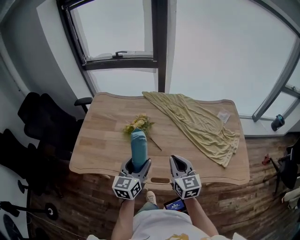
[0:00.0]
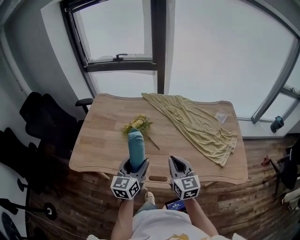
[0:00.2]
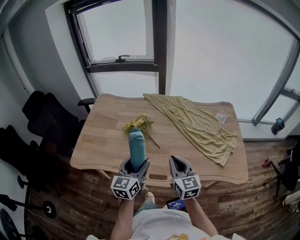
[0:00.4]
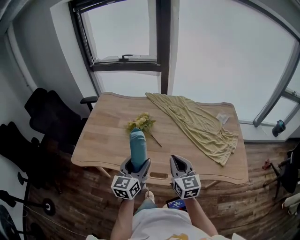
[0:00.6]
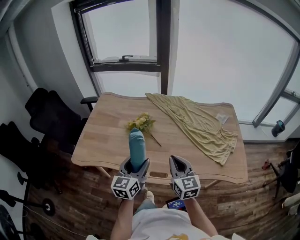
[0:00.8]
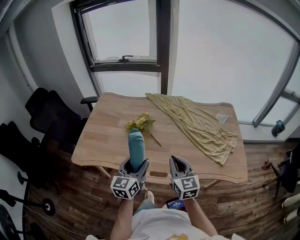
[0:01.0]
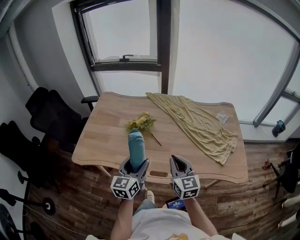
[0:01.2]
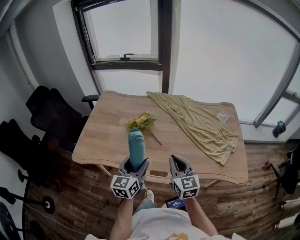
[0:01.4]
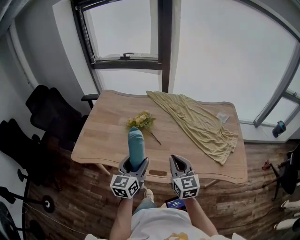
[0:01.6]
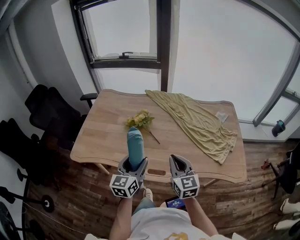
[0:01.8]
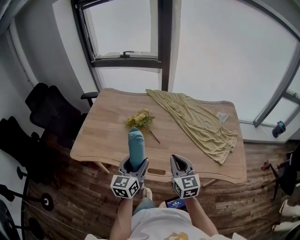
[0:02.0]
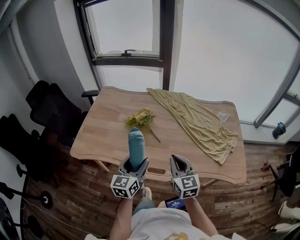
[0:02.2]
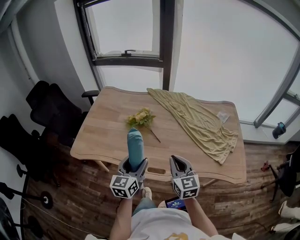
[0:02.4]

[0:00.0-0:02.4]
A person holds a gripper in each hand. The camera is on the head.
0:00.0 to 0:01.2: Both grippers move backward, approximately 5 cm.
0:01.2 to 0:02.4: The grippers move only a little.

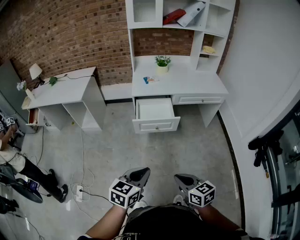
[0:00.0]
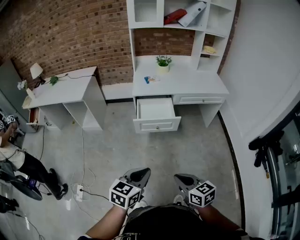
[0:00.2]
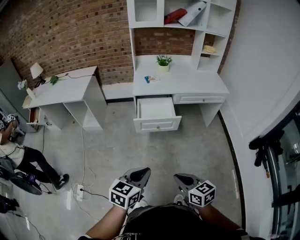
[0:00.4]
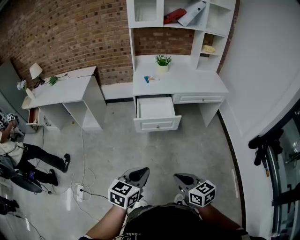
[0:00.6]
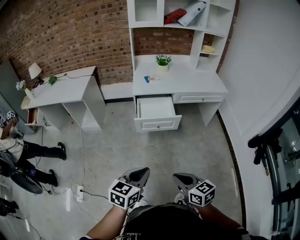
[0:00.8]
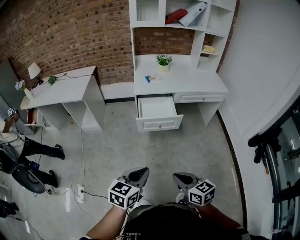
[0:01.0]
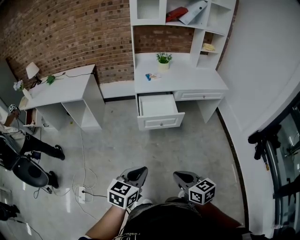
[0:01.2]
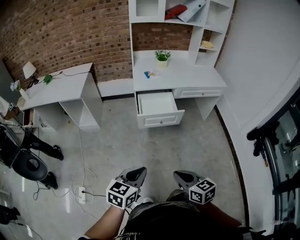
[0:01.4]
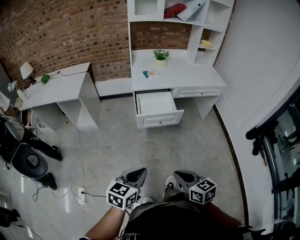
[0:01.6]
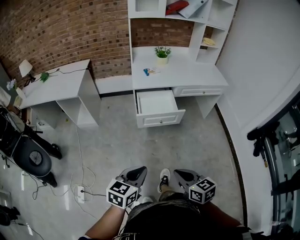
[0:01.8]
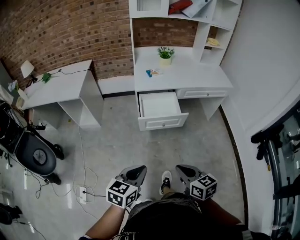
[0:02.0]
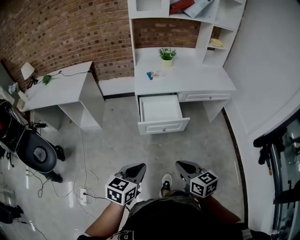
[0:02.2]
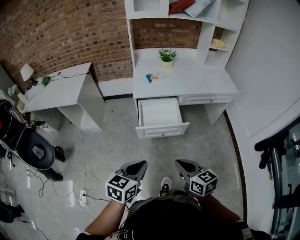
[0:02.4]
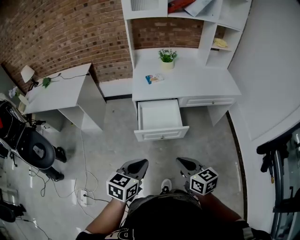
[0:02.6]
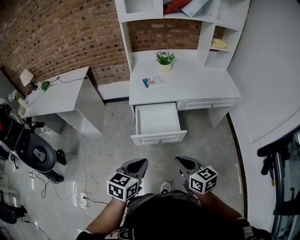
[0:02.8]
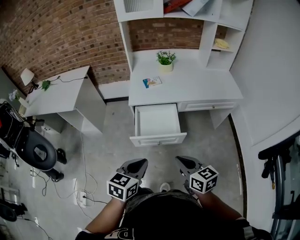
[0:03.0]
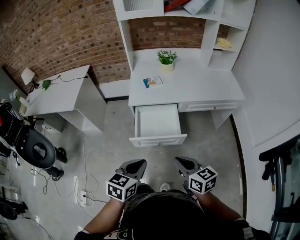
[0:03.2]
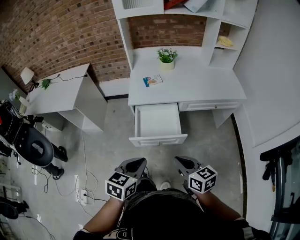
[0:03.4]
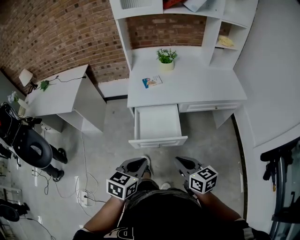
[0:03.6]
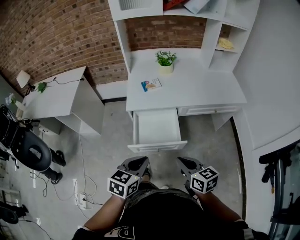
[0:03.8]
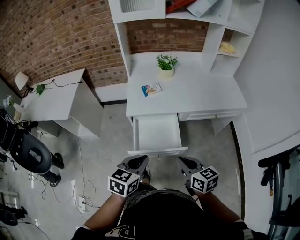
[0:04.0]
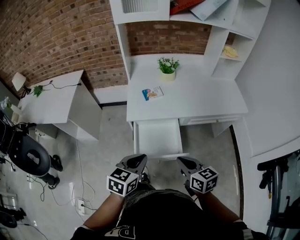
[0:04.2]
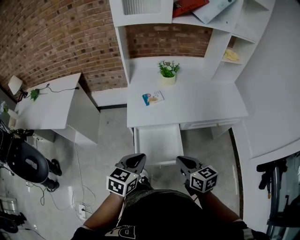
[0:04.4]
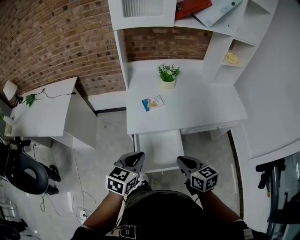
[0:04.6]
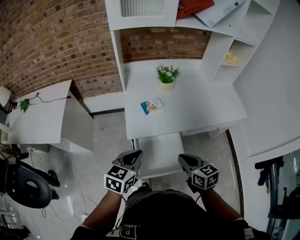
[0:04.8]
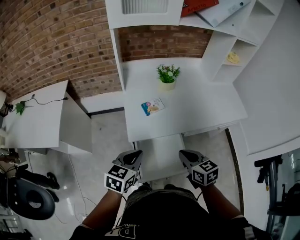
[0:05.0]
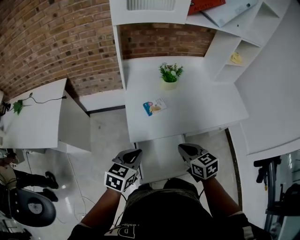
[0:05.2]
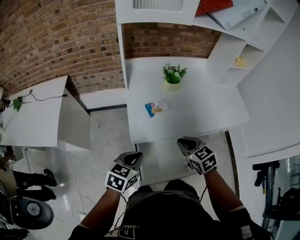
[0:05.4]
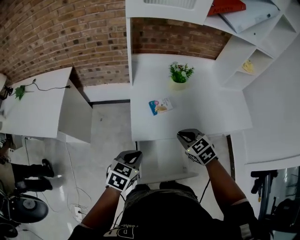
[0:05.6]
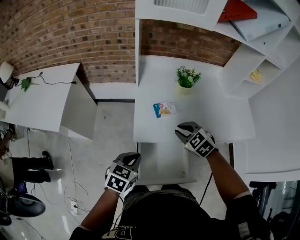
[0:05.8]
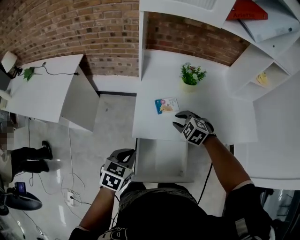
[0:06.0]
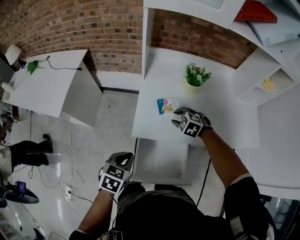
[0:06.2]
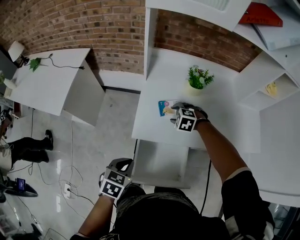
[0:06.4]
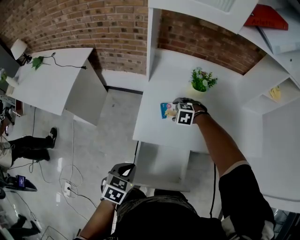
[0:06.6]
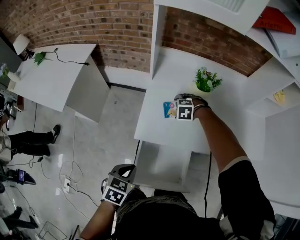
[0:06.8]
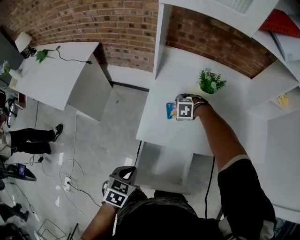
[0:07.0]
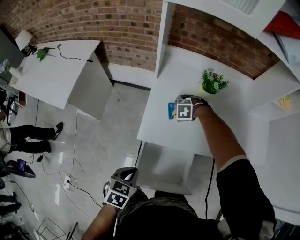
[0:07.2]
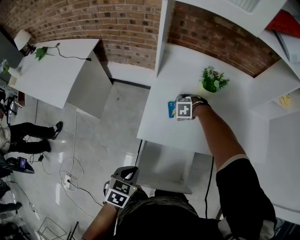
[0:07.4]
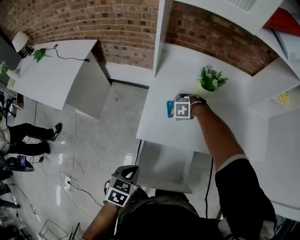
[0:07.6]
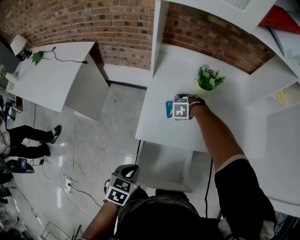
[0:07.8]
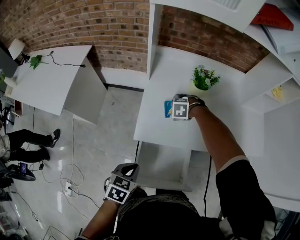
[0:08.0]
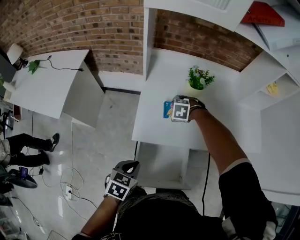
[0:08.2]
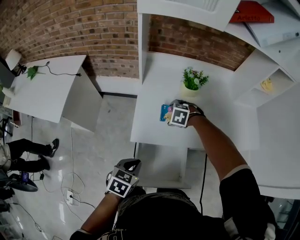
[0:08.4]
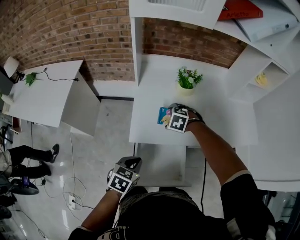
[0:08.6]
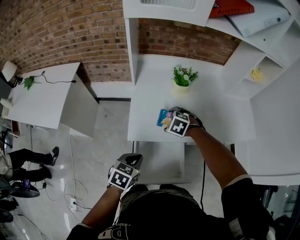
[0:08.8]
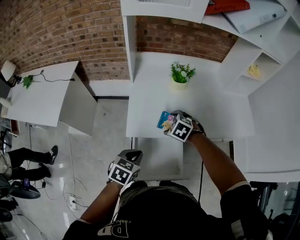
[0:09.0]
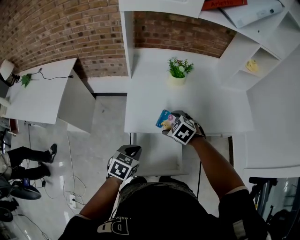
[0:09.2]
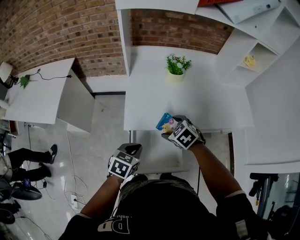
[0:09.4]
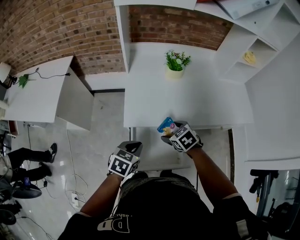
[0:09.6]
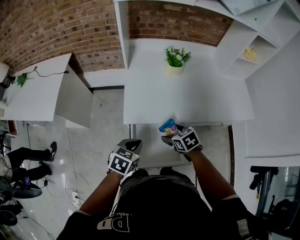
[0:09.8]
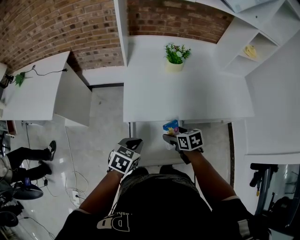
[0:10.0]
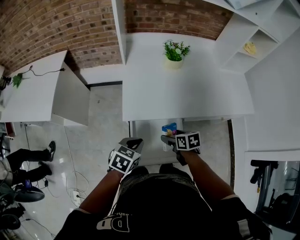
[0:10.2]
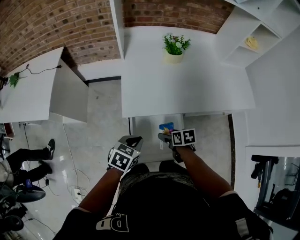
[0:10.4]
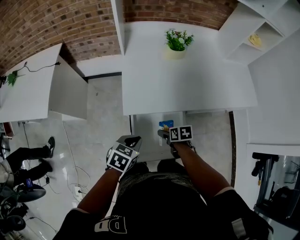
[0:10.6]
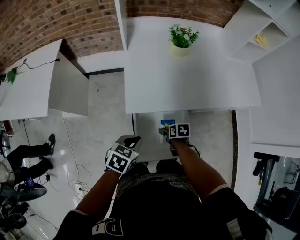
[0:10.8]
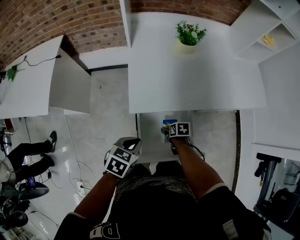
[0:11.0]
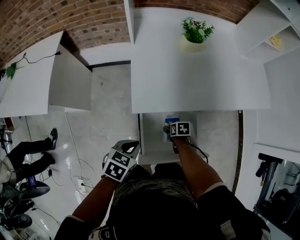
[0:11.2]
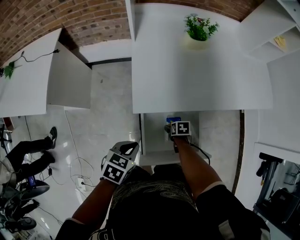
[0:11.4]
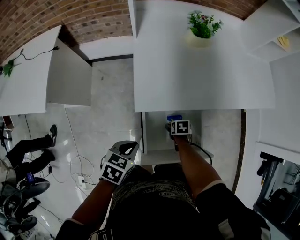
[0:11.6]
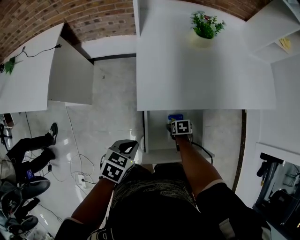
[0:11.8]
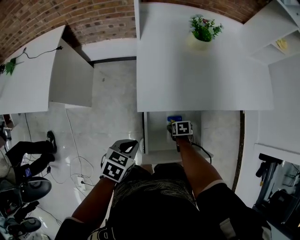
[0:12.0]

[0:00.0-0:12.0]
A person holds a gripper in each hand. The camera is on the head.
0:00.0 to 0:01.6: The two grippers go roughly 10 cm to the left.
0:01.6 to 0:03.0: The left gripper shifts approximately 30 cm forward and to the right, while the right gripper goes about 30 cm forward.
0:03.0 to 0:04.4: The grippers both shift forward by approximately 20 cm.
0:04.4 to 0:06.0: The right gripper travels forward by approximately 30 cm, and rolls counterclockwise, seen from behind, by some 60 degrees; the left gripper heads forward, to the left and downward, covering roughly 20 cm.
0:06.0 to 0:07.6: The right gripper shifts roughly 15 cm downward, rotates some 40 degrees, and opens; the left gripper travels downward by roughly 5 cm.
0:07.6 to 0:09.0: The left gripper ends up about 5 cm from where it was. The right gripper moves some 20 cm, and rotates approximately 40 degrees.
0:09.0 to 0:10.4: The right gripper travels backward and downward by roughly 20 cm, and rolls clockwise, seen from behind, by roughly 70 degrees, while the left gripper changes place by some 5 cm.
0:10.4 to 0:12.0: The right gripper travels downward by about 20 cm, and rotates about 20 degrees; the left gripper moves roughly 10 cm.

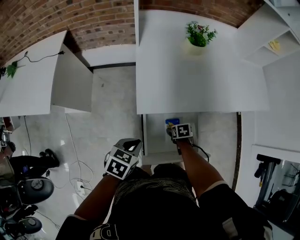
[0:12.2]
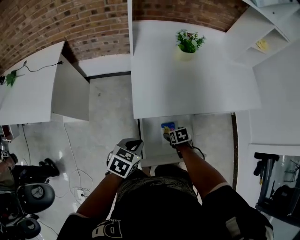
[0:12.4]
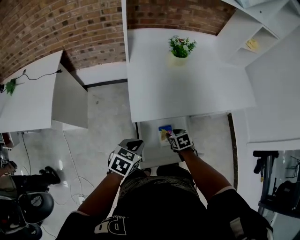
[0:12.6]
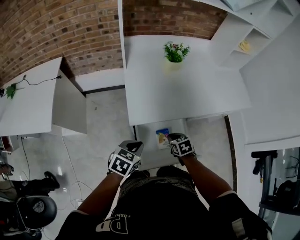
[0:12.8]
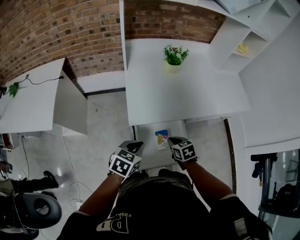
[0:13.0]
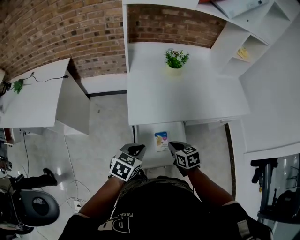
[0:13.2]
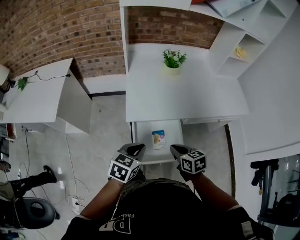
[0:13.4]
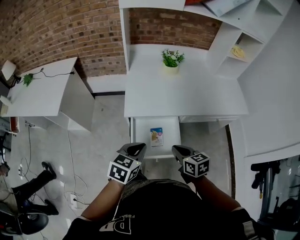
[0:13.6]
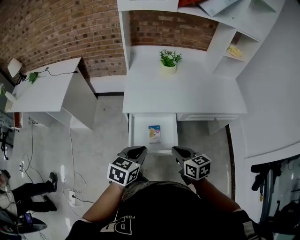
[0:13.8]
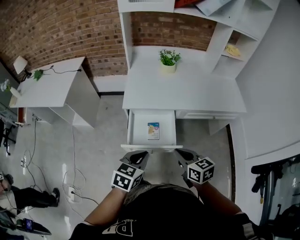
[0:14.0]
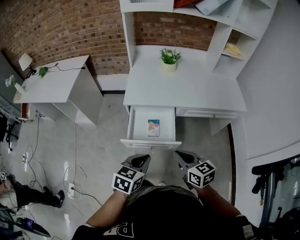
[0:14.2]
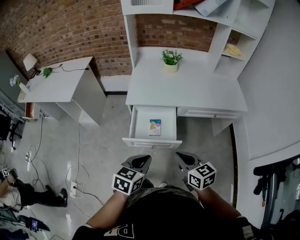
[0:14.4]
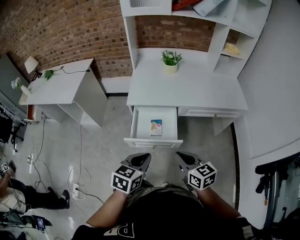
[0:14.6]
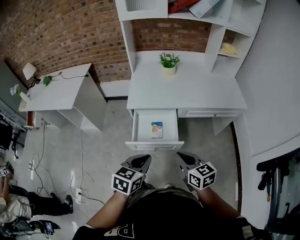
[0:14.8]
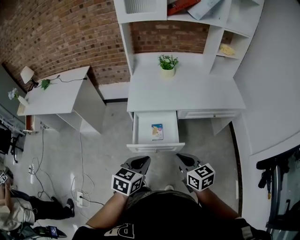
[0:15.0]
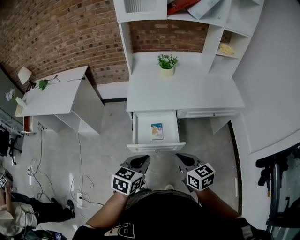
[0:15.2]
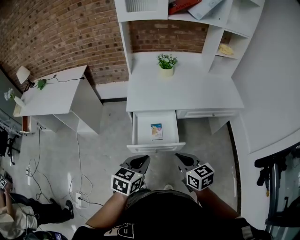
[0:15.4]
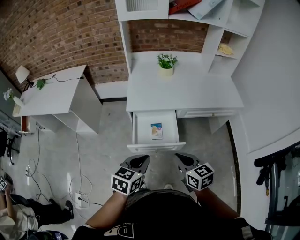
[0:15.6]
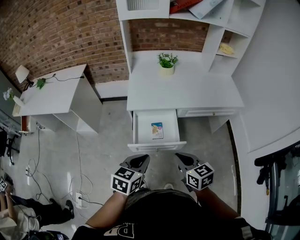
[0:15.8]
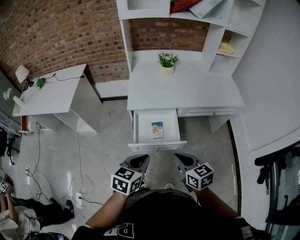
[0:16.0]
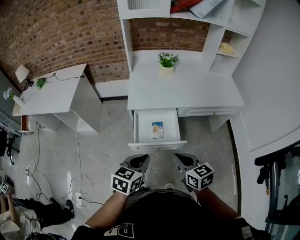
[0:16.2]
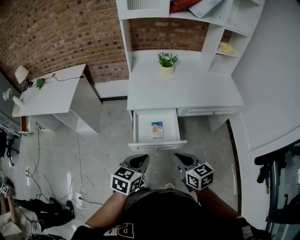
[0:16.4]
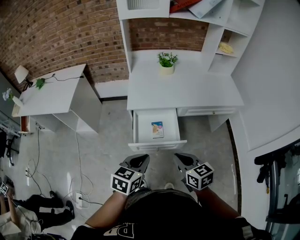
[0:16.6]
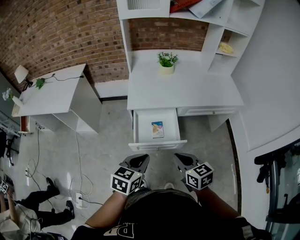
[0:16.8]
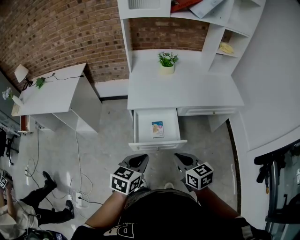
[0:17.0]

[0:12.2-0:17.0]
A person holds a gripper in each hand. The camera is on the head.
0:12.2 to 0:13.8: The right gripper heads upward, covering some 35 cm, points its fingers approximately 50 degrees further upward, and closes up. Meanwhile the left gripper shifts by roughly 25 cm, and changes its angle by roughly 20 degrees.
0:13.8 to 0:15.4: The right gripper goes about 10 cm backward and upward, while the left gripper heads backward, covering approximately 10 cm.
0:15.4 to 0:17.0: The grippers stay close to where they were, moving slightly.

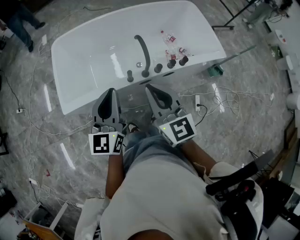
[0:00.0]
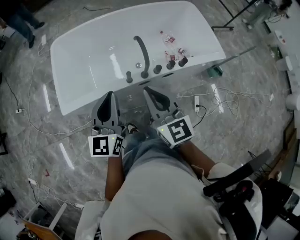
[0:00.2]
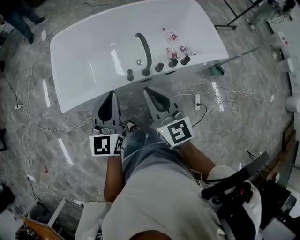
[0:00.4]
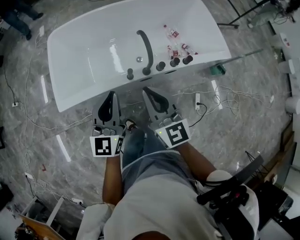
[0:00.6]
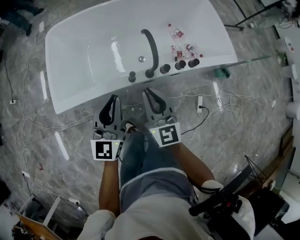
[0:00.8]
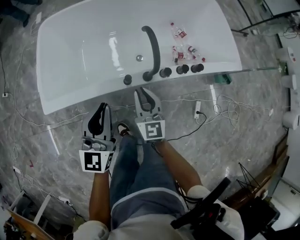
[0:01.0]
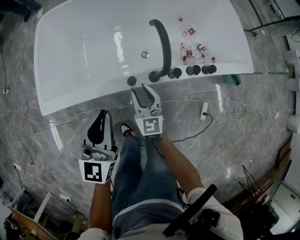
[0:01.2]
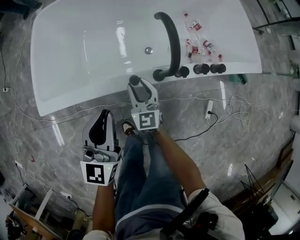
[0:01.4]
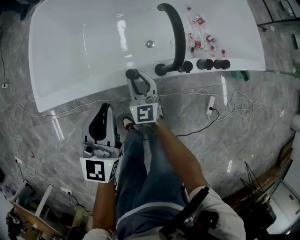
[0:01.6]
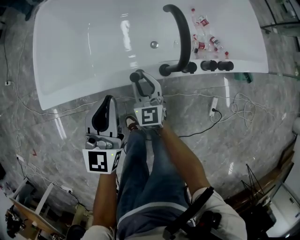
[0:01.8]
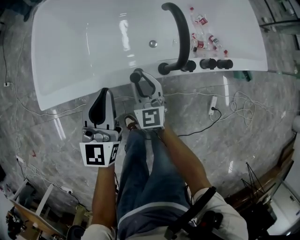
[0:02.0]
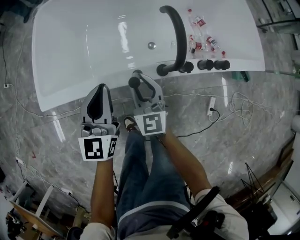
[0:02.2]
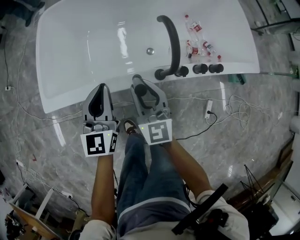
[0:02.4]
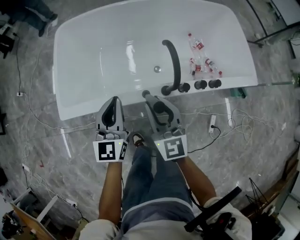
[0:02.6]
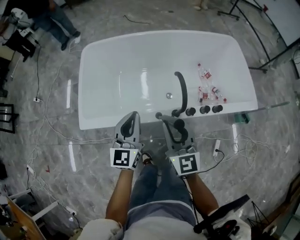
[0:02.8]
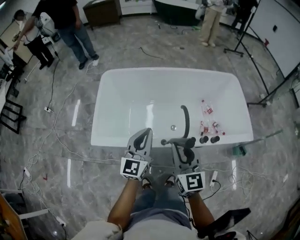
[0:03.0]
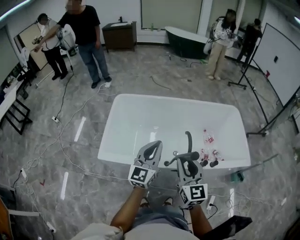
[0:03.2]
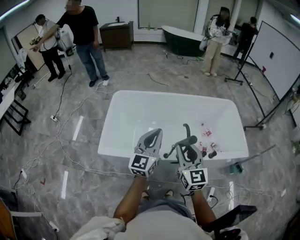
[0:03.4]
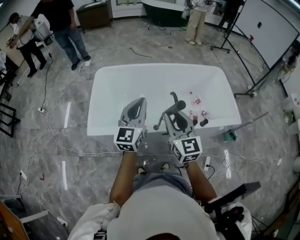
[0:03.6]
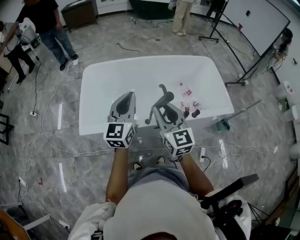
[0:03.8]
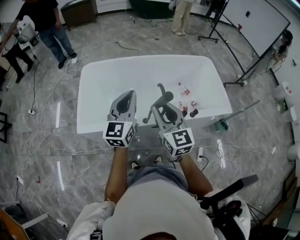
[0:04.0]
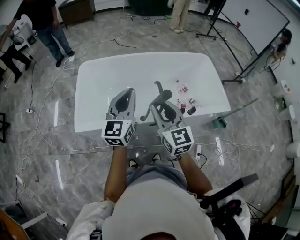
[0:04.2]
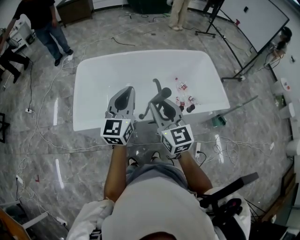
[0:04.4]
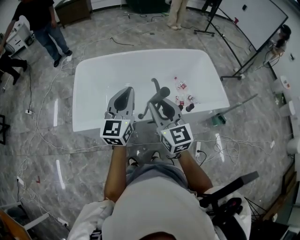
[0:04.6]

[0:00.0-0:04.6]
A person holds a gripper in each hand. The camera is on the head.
0:00.0 to 0:01.6: The two grippers go about 80 cm downward and forward. The right gripper opens.
0:01.6 to 0:03.0: Both grippers travel together upward, about 70 cm.
0:03.0 to 0:04.6: The two grippers go roughly 25 cm backward and upward.
